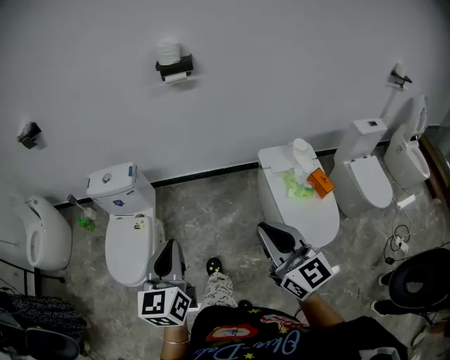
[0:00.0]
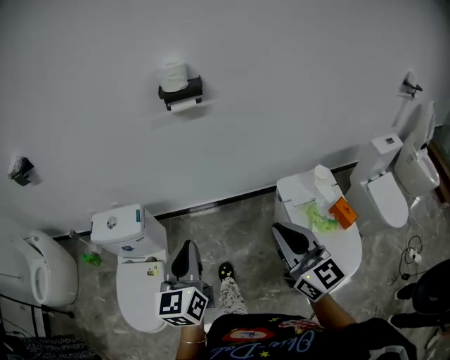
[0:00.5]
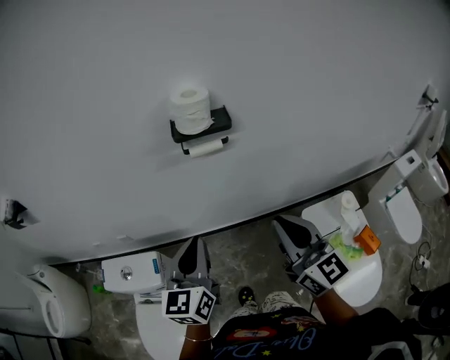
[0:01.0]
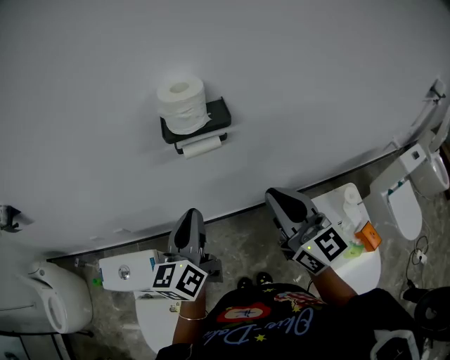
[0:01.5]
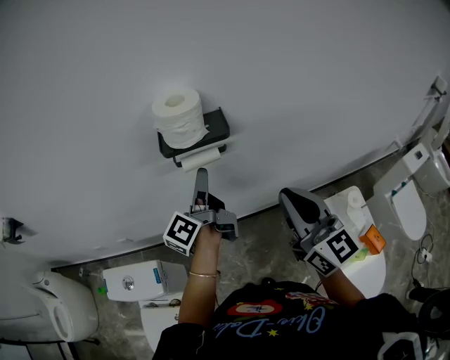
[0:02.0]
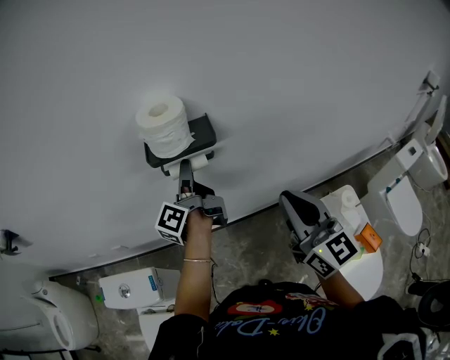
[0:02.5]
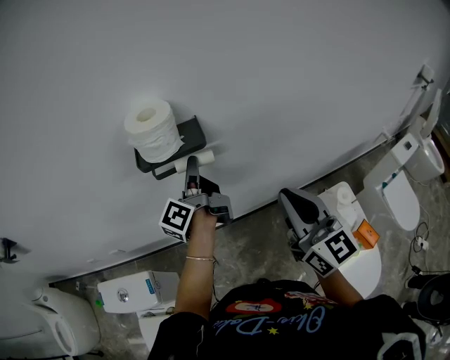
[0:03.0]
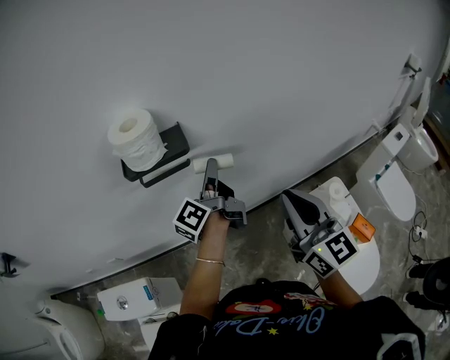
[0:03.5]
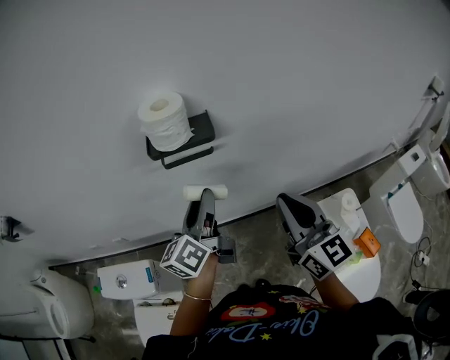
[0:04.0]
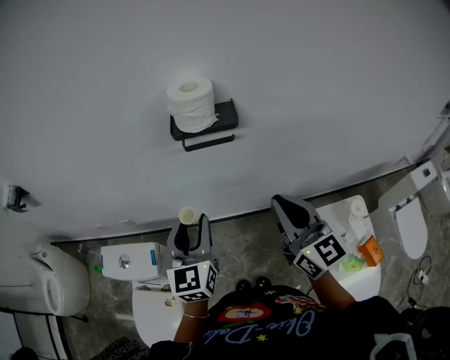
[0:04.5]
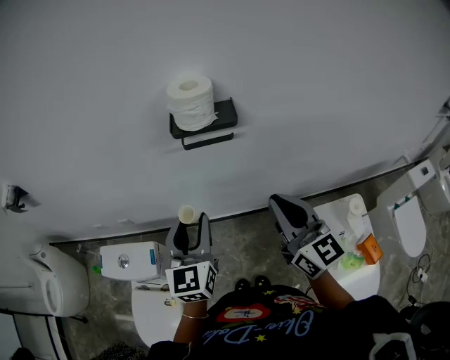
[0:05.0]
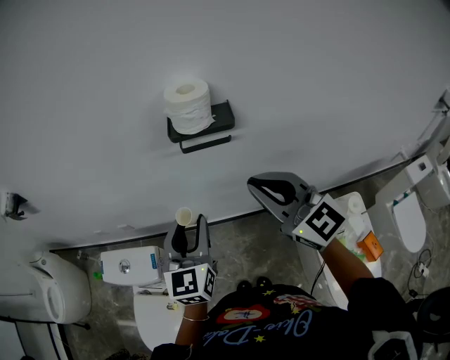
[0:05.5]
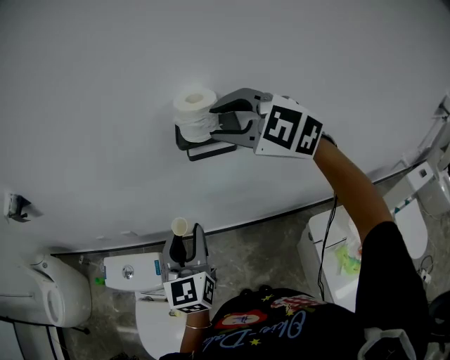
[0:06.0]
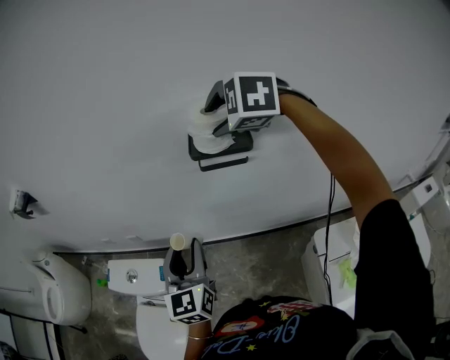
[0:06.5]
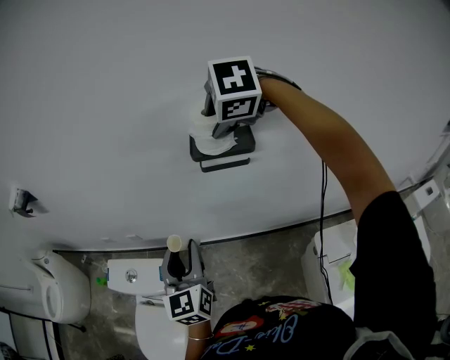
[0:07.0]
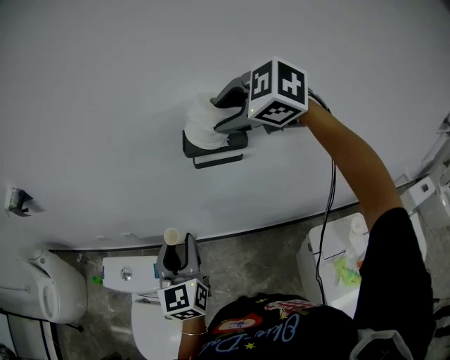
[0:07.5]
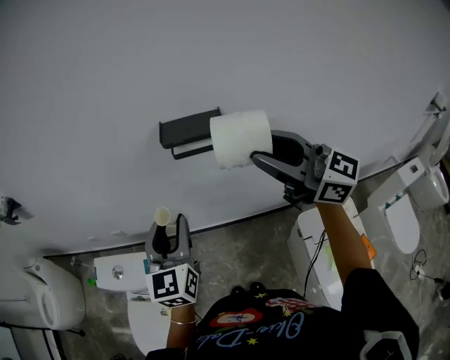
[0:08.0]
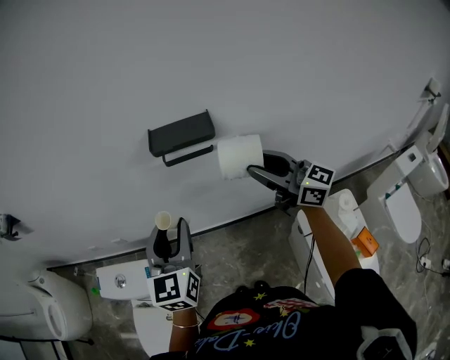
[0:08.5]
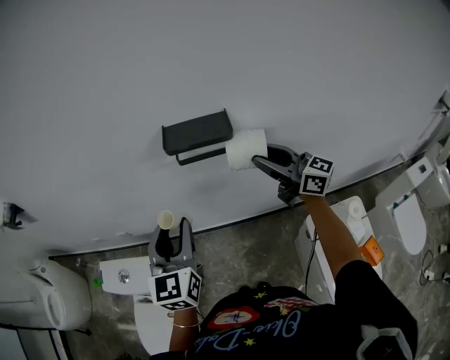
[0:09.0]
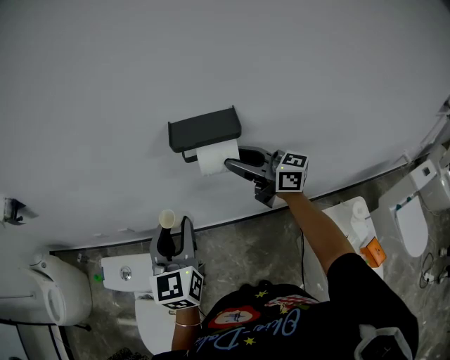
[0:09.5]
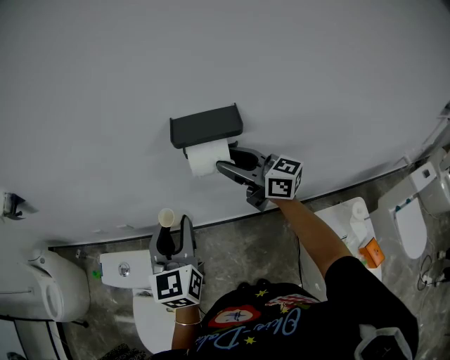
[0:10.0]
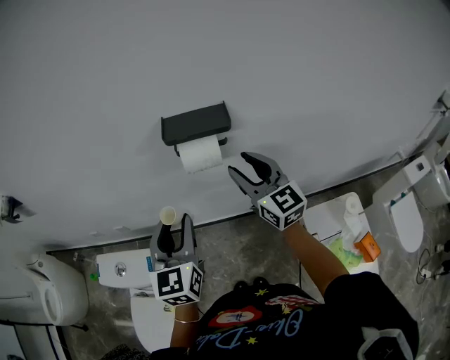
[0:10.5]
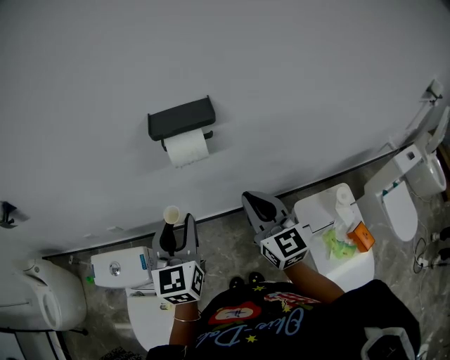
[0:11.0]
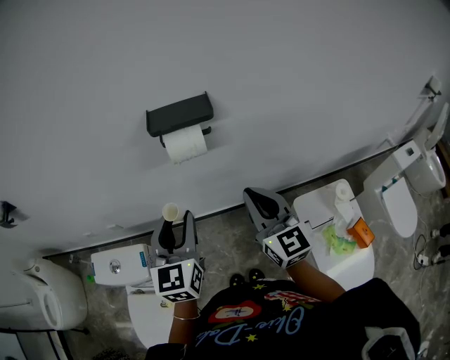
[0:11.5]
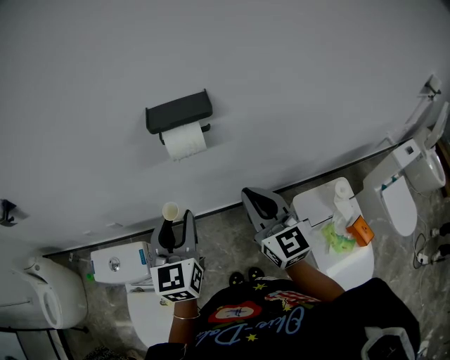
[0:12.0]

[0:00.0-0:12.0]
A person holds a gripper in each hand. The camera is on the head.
0.0 to 2.0 s: The pair of grippers is taken forward, about 60 cm. The left gripper twists about 60 degrees counterclockwise, seen from behind, and opens its fingers.
2.0 to 4.0 s: The left gripper moves backward, about 5 cm, reaches about 15 cm to the right, then returns, turns by some 30 degrees, and closes its fingers.
4.0 to 6.0 s: The left gripper heads to the left and backward, covering approximately 15 cm, and rotates around the line of its fingers by approximately 40 degrees, clockwise from behind. Meanwhile the right gripper heads forward, to the left and upward, covering approximately 25 cm, turns by roughly 70 degrees, and opens its fingers.
6.0 to 8.0 s: The right gripper heads backward and to the right, covering some 15 cm, and tilts its fingers about 40 degrees upward.
8.0 to 10.0 s: The right gripper is displaced downward and forward by some 20 cm.
10.0 to 12.0 s: The left gripper heads backward, covering approximately 5 cm. The right gripper is displaced backward by approximately 20 cm, turns by some 40 degrees, and closes up.

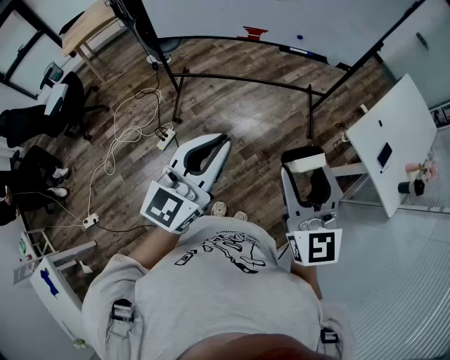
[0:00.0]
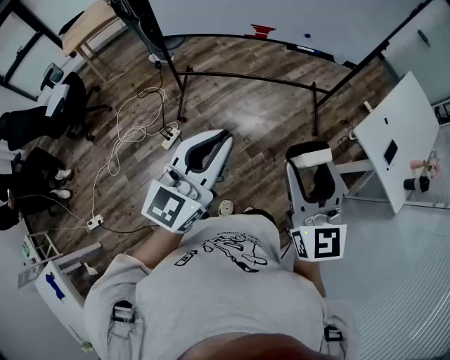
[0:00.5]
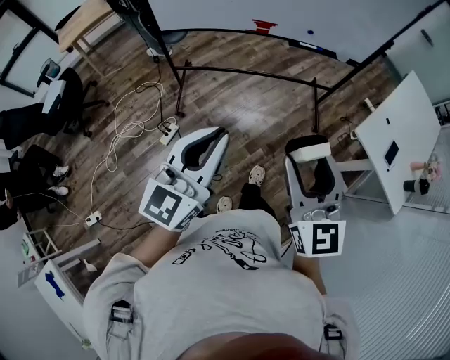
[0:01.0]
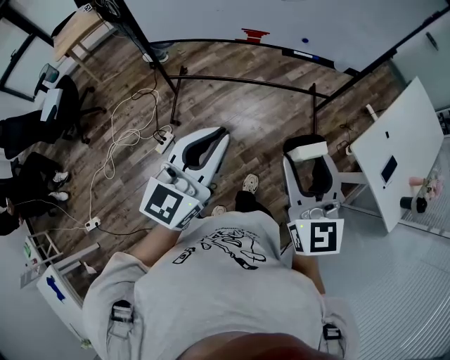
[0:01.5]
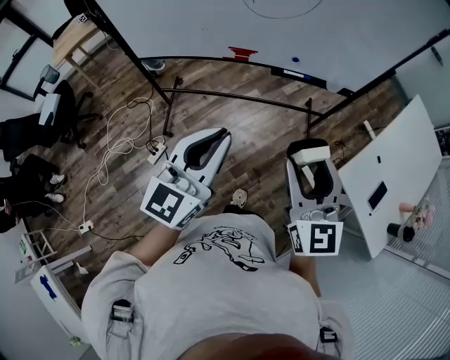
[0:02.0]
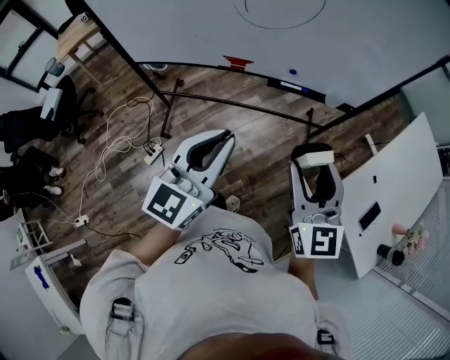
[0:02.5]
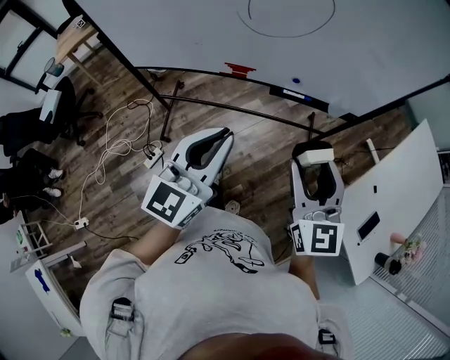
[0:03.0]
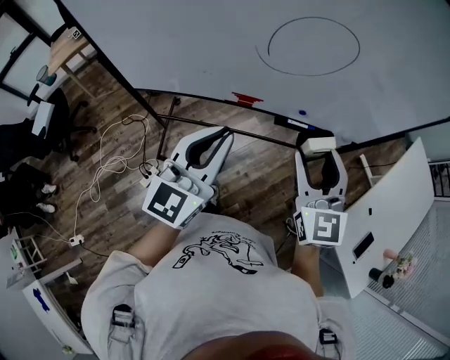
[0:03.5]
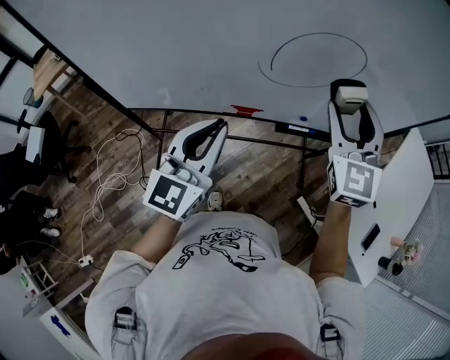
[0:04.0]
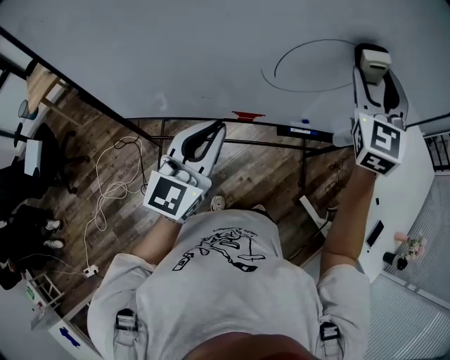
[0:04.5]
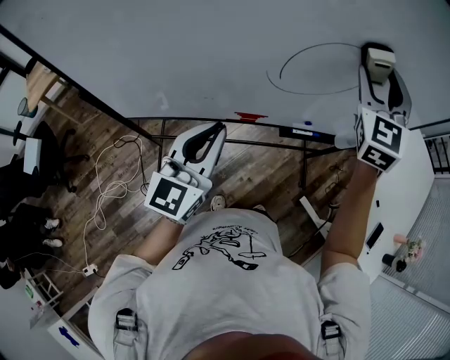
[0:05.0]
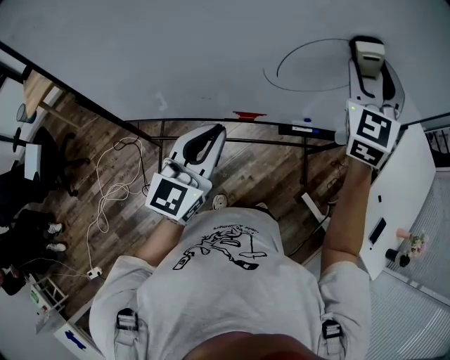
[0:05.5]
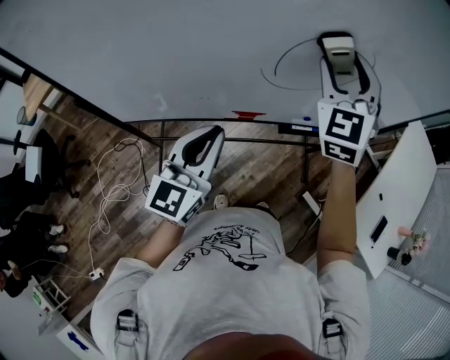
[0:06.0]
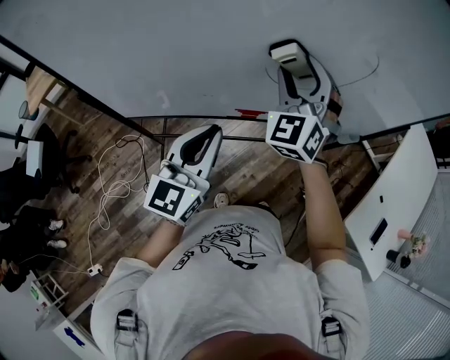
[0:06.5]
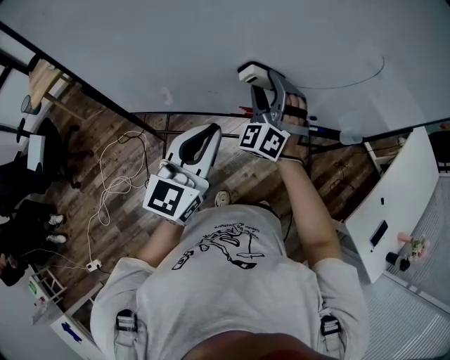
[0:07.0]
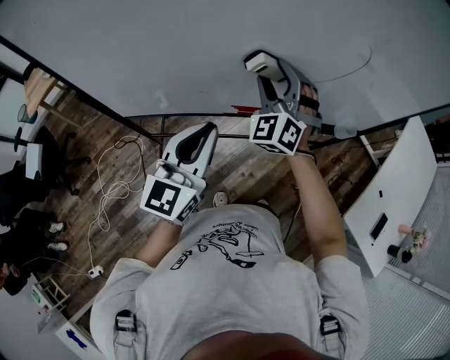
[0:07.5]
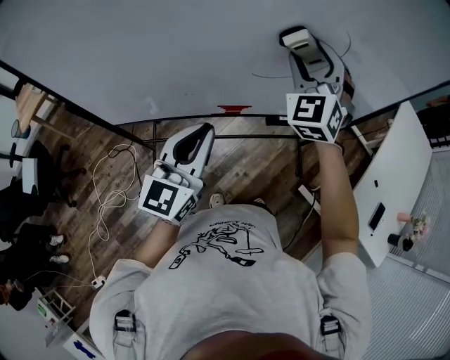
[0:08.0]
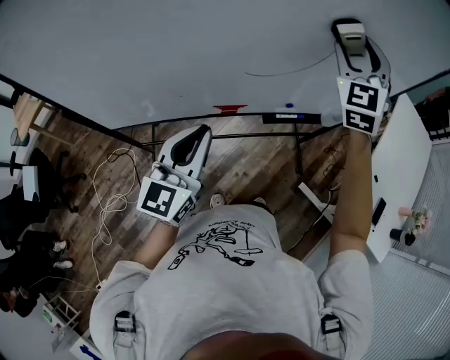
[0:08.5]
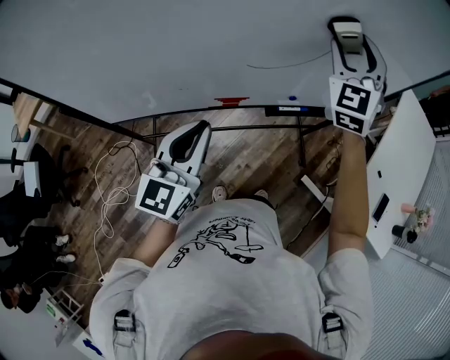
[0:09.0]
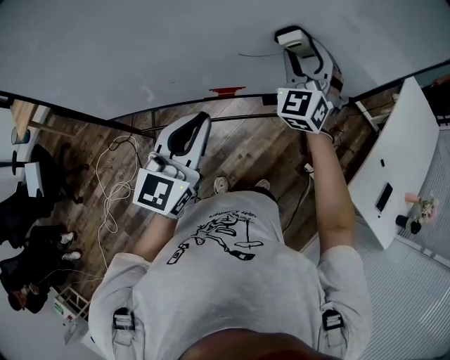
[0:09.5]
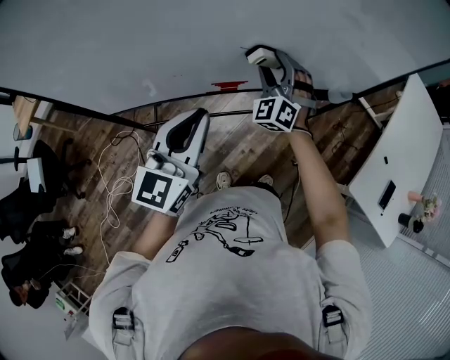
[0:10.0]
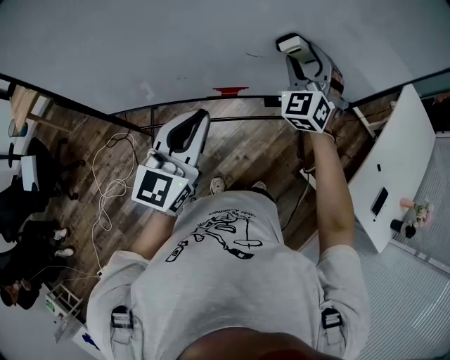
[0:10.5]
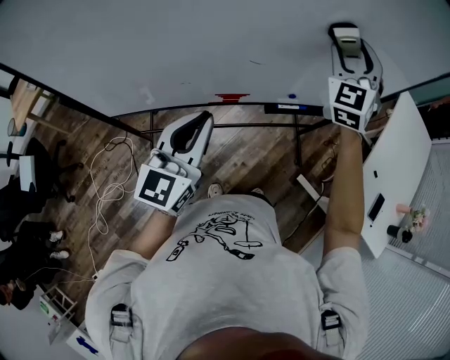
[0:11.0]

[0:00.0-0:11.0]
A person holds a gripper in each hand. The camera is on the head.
0.0 to 2.0 s: Both grippers travel together forward, about 25 cm.
2.0 to 3.5 s: The grippers both shift forward by roughly 25 cm.
3.5 to 5.5 s: The right gripper heads forward and upward, covering about 25 cm, and swivels approximately 40 degrees; the left gripper shifts some 15 cm to the left and forward.
5.5 to 7.5 s: The right gripper is displaced downward and to the left by about 20 cm, and changes its angle by about 20 degrees.
7.5 to 9.0 s: The right gripper moves to the right and upward, some 25 cm, and turns by about 20 degrees.
9.0 to 11.0 s: The right gripper travels downward and back again, approximately 25 cm each way.

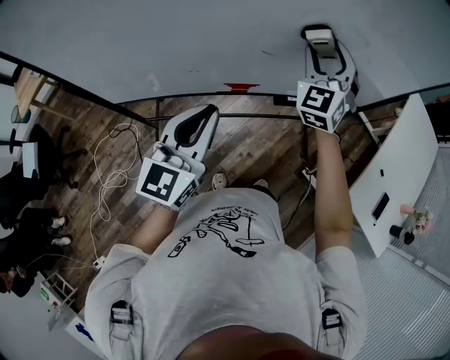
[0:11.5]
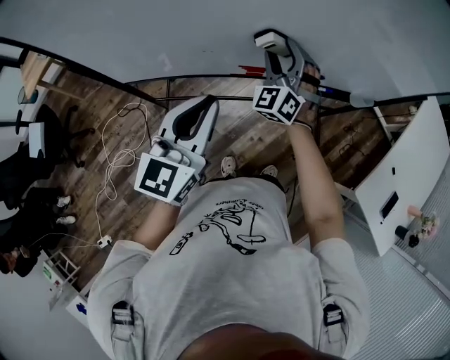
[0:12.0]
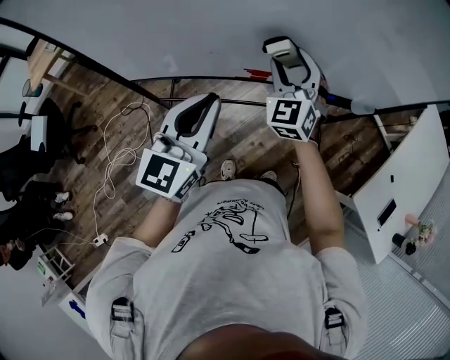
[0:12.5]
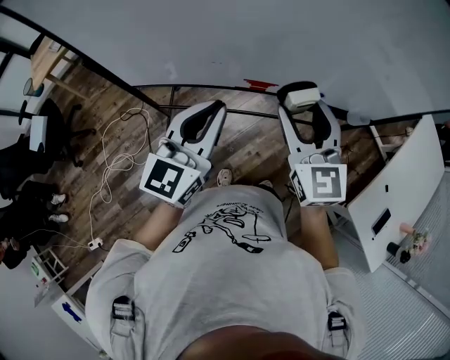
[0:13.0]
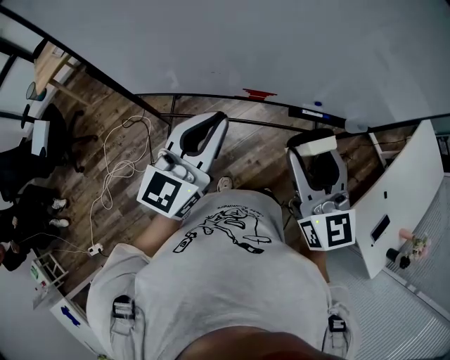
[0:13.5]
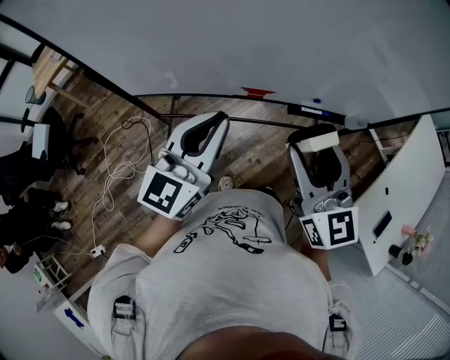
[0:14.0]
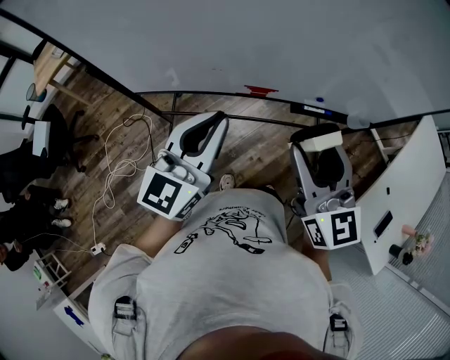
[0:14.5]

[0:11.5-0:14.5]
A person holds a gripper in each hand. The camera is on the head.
11.5 to 13.0 s: The right gripper heads backward and to the left, covering about 20 cm, and turns by roughly 40 degrees.
13.0 to 14.5 s: The right gripper moves backward, about 5 cm.

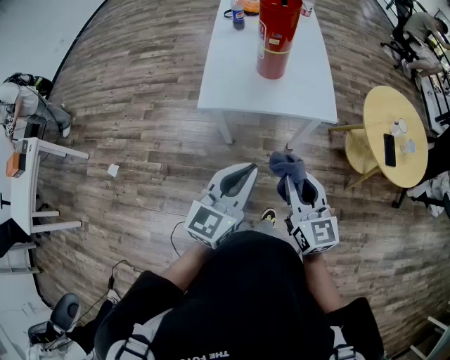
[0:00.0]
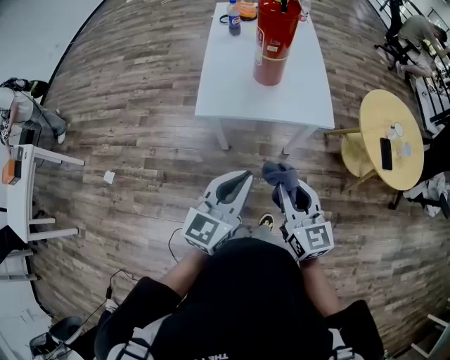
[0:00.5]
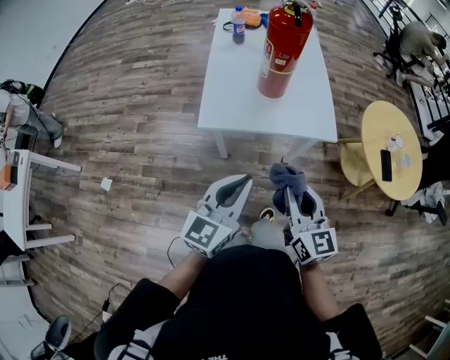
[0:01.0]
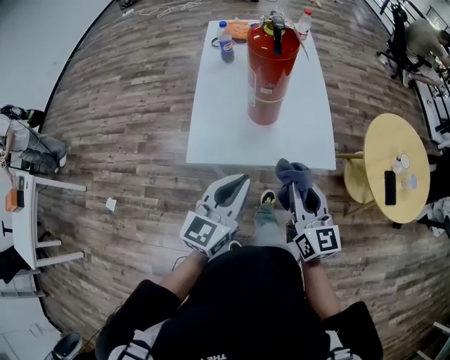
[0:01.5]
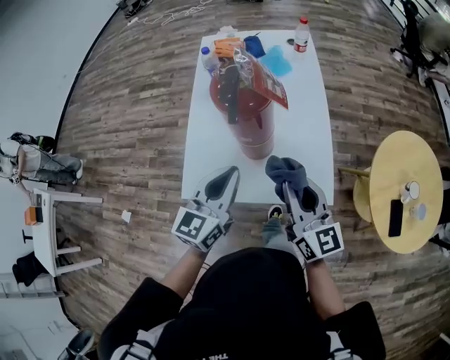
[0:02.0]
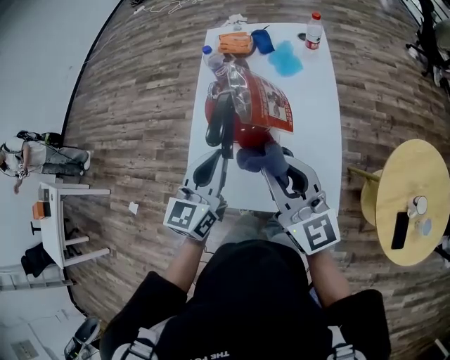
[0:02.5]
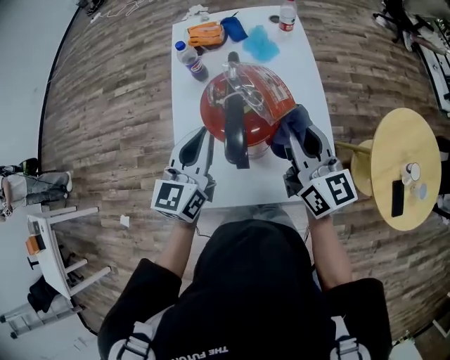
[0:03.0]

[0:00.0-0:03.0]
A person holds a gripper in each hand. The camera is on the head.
0.0 to 1.5 s: The two grippers go roughly 20 cm forward.
1.5 to 3.0 s: The two grippers go some 30 cm forward.
